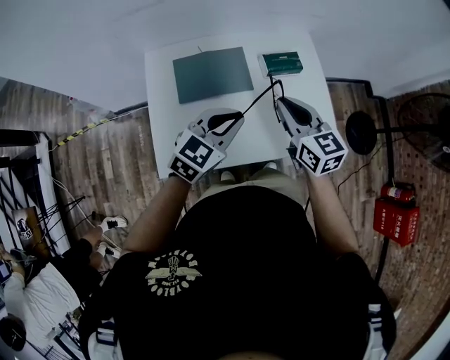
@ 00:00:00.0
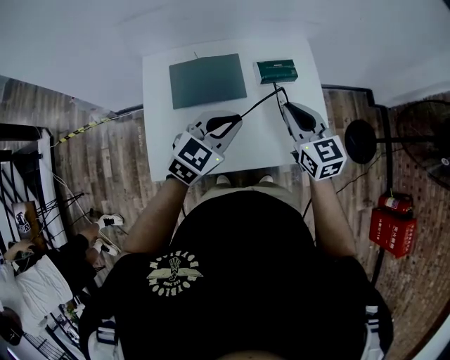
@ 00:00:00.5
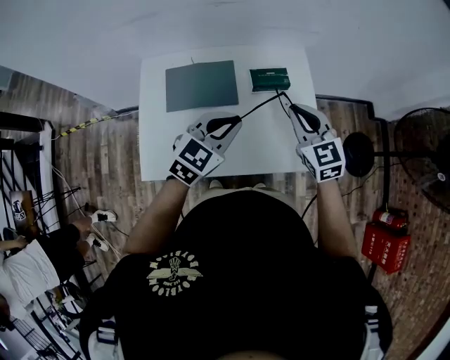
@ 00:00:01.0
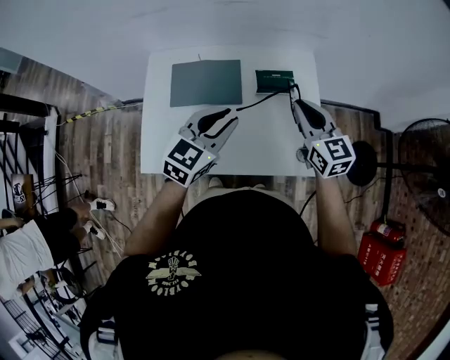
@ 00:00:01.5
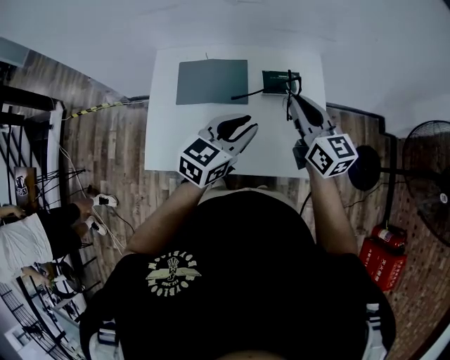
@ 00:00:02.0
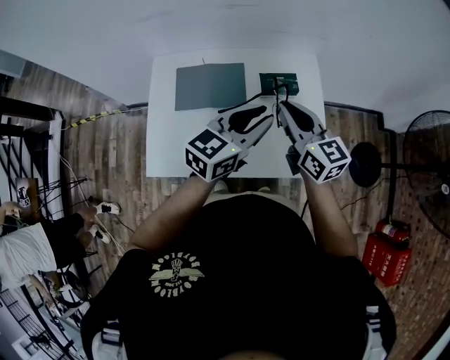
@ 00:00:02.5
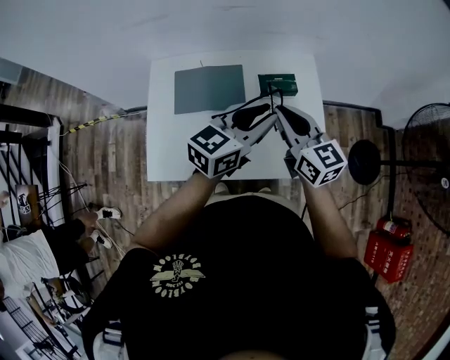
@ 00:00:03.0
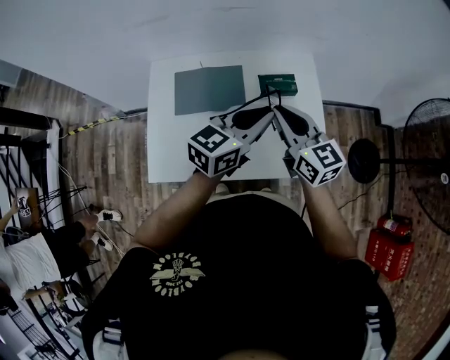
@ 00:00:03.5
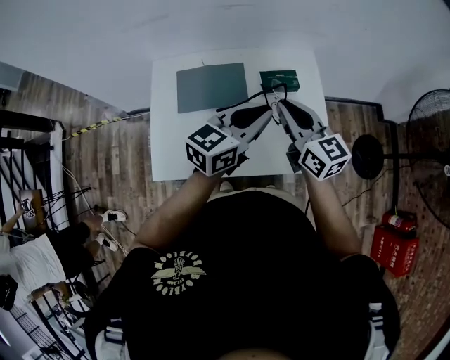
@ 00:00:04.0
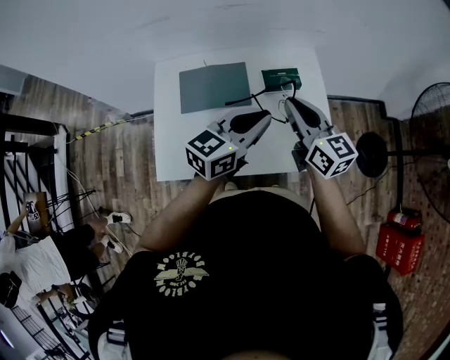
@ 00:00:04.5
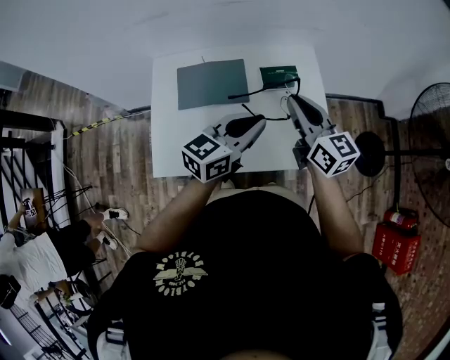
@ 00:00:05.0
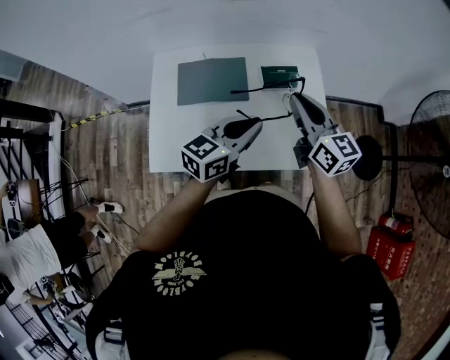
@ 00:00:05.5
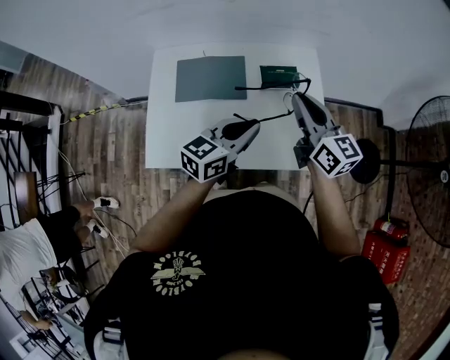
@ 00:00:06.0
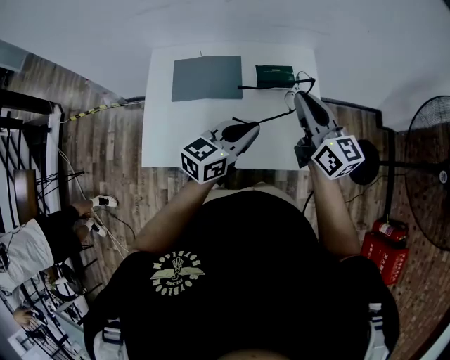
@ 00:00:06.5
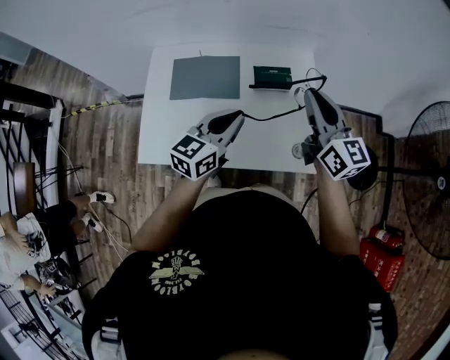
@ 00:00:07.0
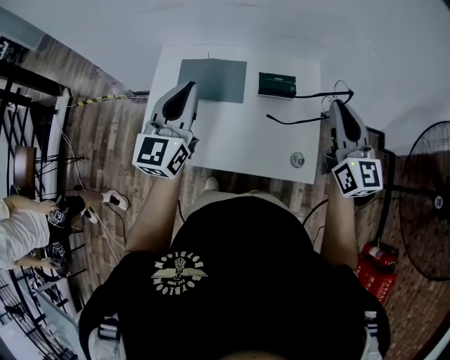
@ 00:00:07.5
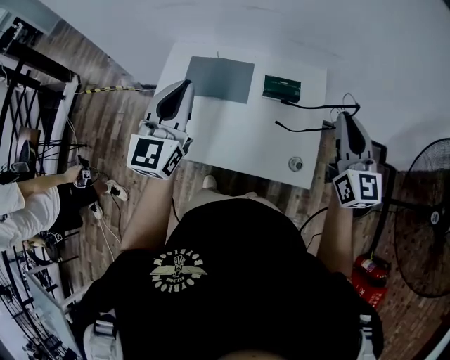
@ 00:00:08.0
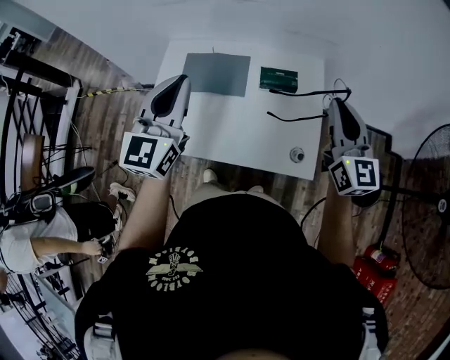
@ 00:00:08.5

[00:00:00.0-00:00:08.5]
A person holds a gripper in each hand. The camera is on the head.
00:00:00.0 to 00:00:02.0: The right gripper moves to the right and forward, roughly 10 cm, while the left gripper shifts some 10 cm to the right, and swivels about 20 degrees.
00:00:02.0 to 00:00:04.0: The right gripper shifts by approximately 5 cm, while the left gripper moves upward, some 5 cm.
00:00:04.0 to 00:00:06.5: The right gripper is displaced to the right by approximately 5 cm. Meanwhile the left gripper shifts some 5 cm downward.
00:00:06.5 to 00:00:08.5: The left gripper shifts about 20 cm upward and to the left, and swivels roughly 50 degrees, while the right gripper goes roughly 10 cm to the right and upward.

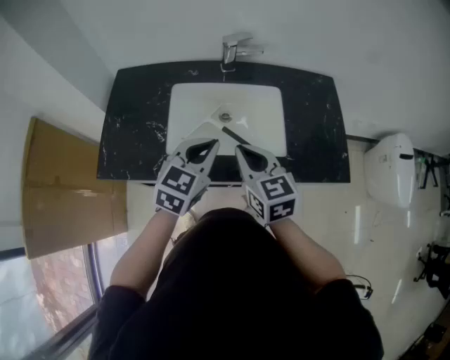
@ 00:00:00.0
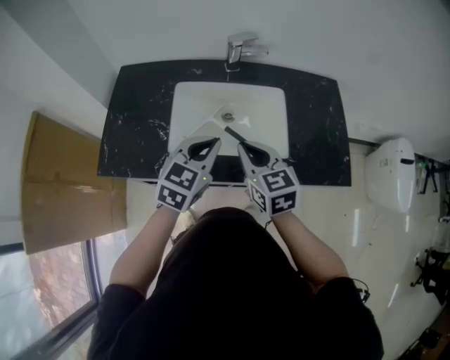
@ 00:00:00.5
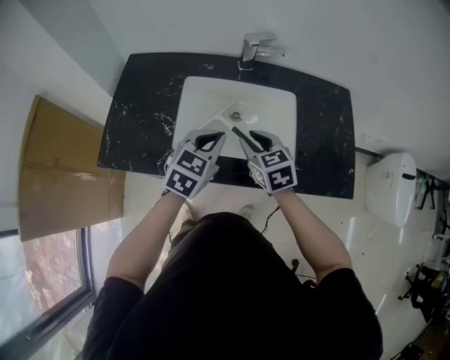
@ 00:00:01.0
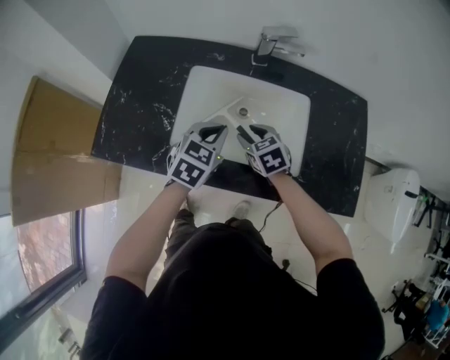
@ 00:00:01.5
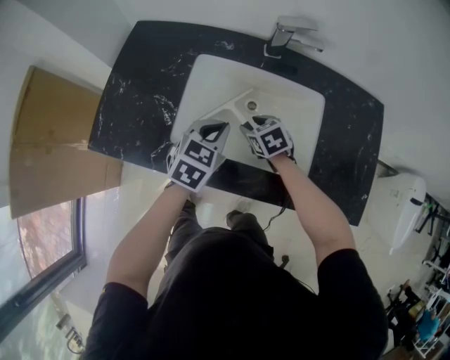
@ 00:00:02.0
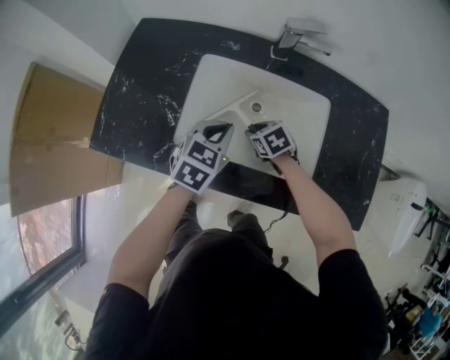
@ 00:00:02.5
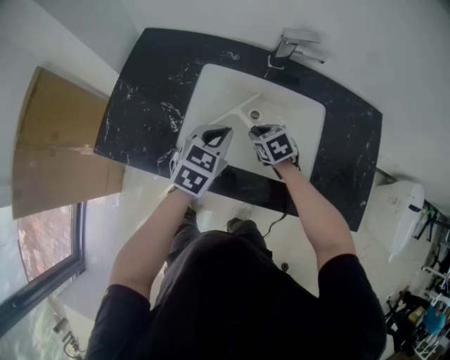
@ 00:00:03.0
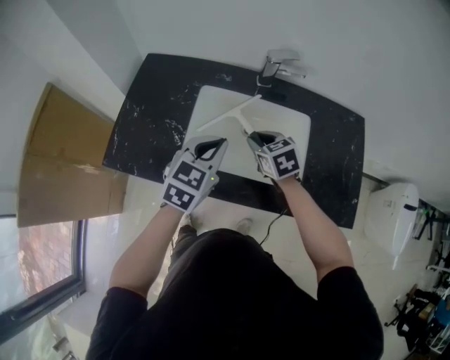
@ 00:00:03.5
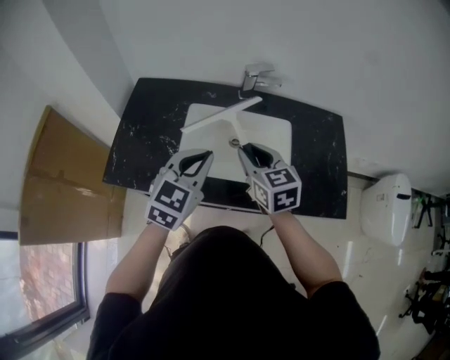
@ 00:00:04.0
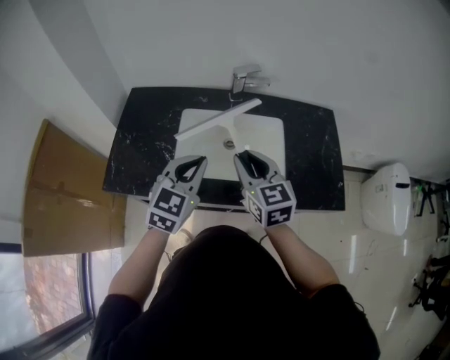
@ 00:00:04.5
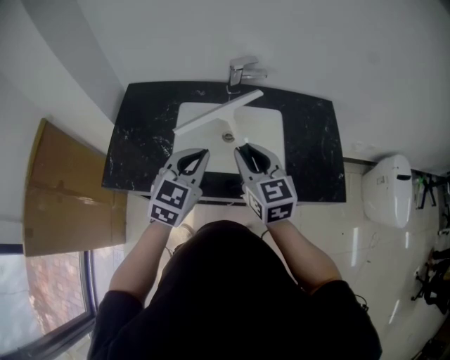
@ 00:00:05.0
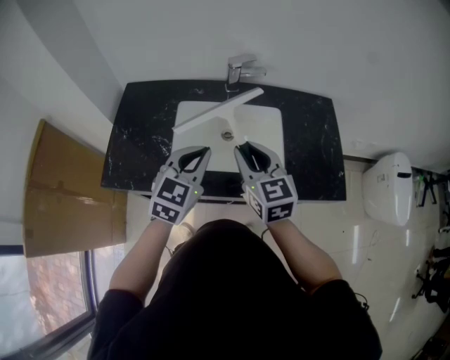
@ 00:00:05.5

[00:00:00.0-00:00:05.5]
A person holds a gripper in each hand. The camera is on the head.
00:00:00.0 to 00:00:02.0: The left gripper is displaced downward and forward by some 15 cm, and swivels approximately 20 degrees; the right gripper shifts about 30 cm downward and forward, points its fingers roughly 30 degrees further downward, and opens.
00:00:02.0 to 00:00:03.5: The two grippers go some 10 cm upward. The right gripper closes up.
00:00:03.5 to 00:00:05.5: The left gripper moves backward, approximately 5 cm; the right gripper shifts roughly 20 cm upward and backward, and tips its fingers upward by approximately 30 degrees.

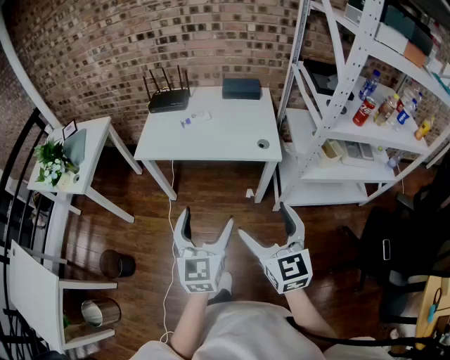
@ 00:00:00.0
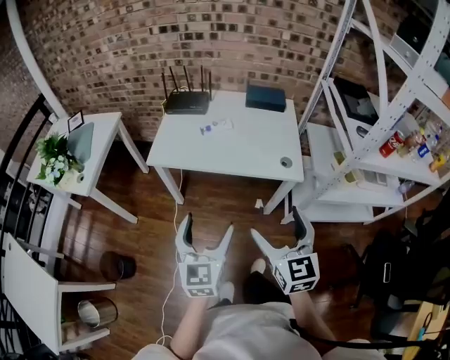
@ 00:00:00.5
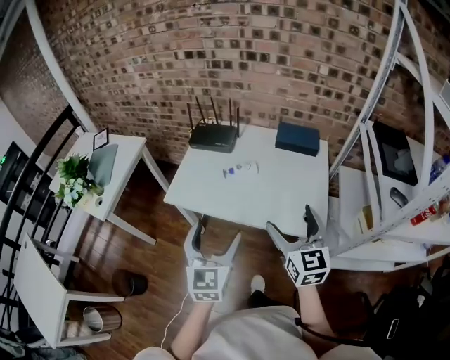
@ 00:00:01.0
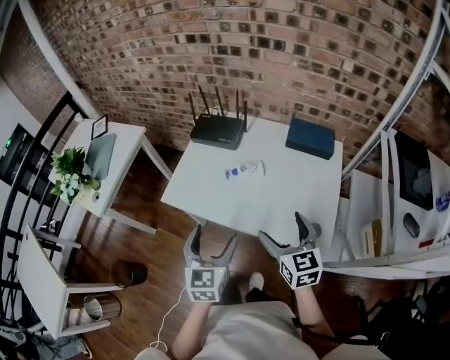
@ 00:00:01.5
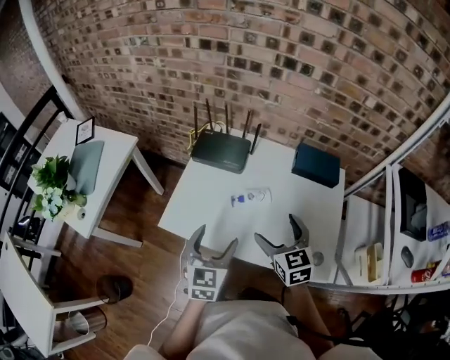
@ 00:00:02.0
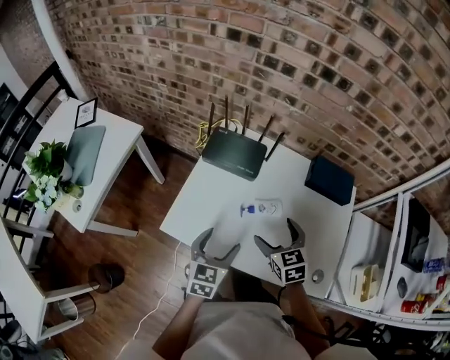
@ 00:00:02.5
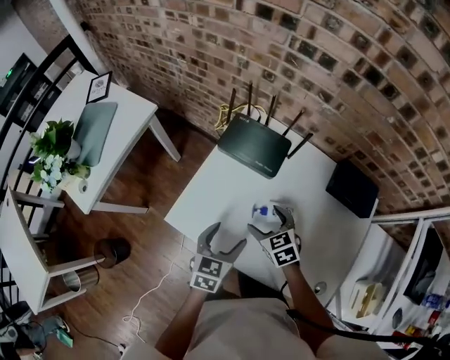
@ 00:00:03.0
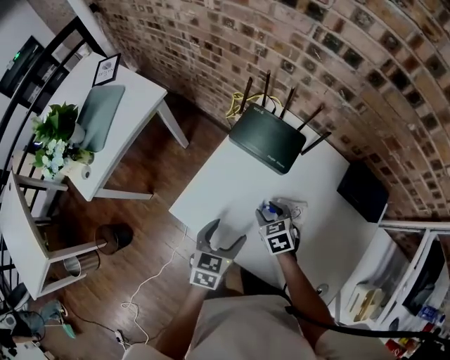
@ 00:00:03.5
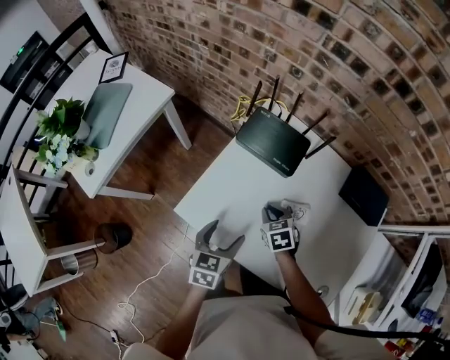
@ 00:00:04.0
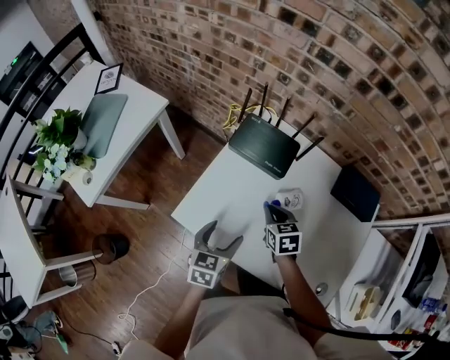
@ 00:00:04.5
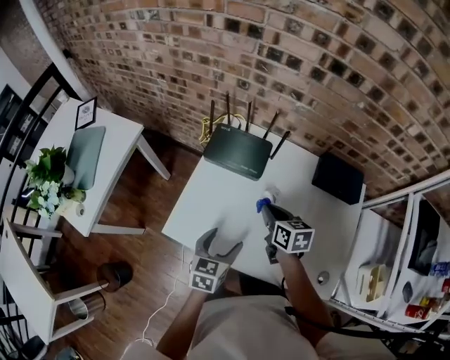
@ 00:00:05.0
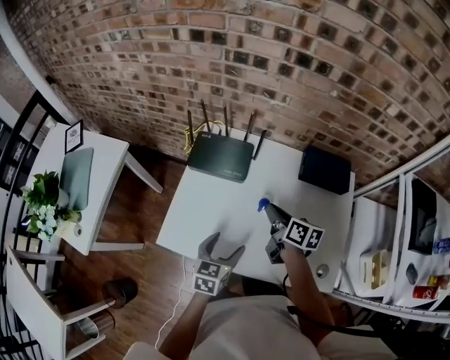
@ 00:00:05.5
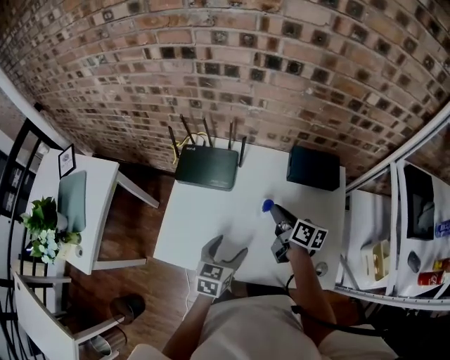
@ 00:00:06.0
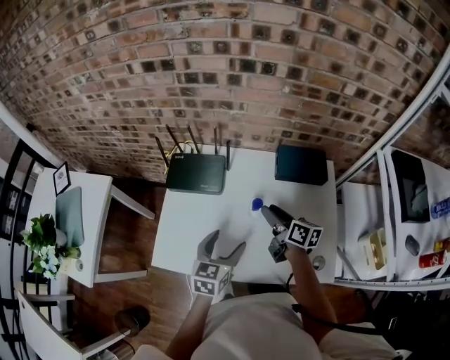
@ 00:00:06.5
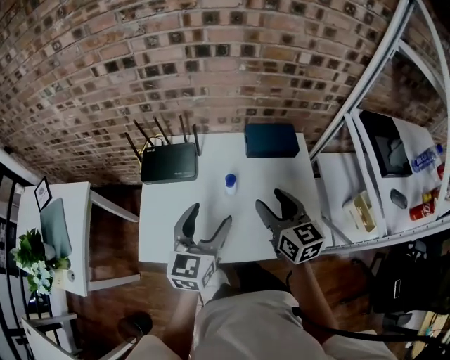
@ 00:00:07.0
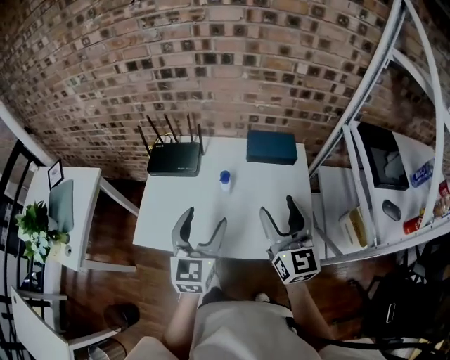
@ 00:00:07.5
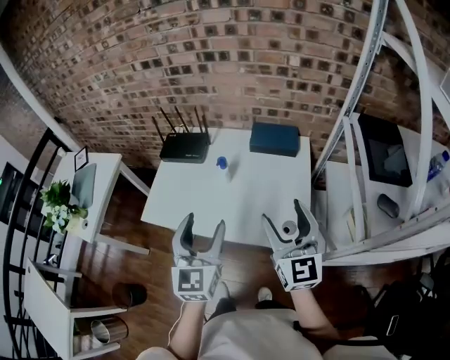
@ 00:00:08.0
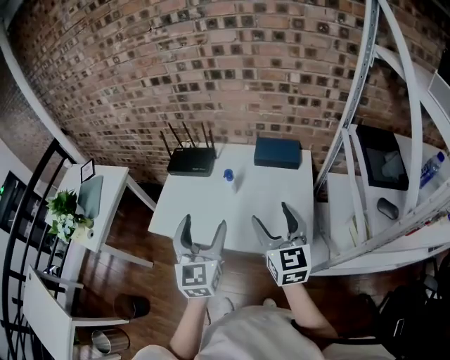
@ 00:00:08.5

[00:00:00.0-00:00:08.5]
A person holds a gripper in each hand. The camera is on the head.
00:00:00.0 to 00:00:02.0: The pair of grippers is taken forward, roughly 50 cm. The right gripper changes its angle by some 20 degrees.
00:00:02.0 to 00:00:04.0: The left gripper is displaced downward and forward by approximately 15 cm, and turns by about 30 degrees. The right gripper is displaced downward, forward and to the left by approximately 30 cm, swivels some 30 degrees, and closes up.
00:00:04.0 to 00:00:06.5: The two grippers go some 20 cm to the right and upward. The right gripper tips its fingers upward by some 40 degrees. The left gripper changes its angle by roughly 30 degrees.
00:00:06.5 to 00:00:08.5: The left gripper shifts approximately 25 cm upward and backward, and turns by some 40 degrees; the right gripper heads backward, upward and to the right, covering roughly 35 cm, and rotates around the line of its fingers by about 50 degrees, counterclockwise from behind.

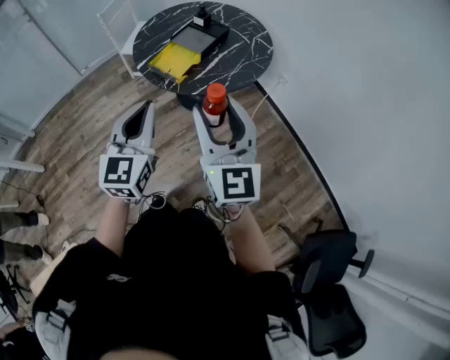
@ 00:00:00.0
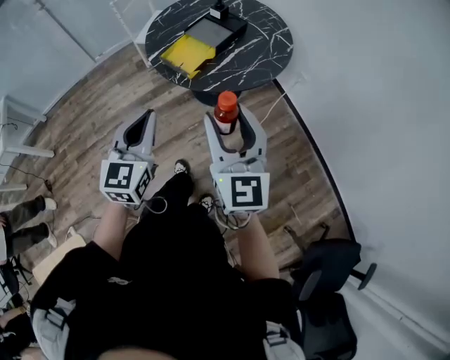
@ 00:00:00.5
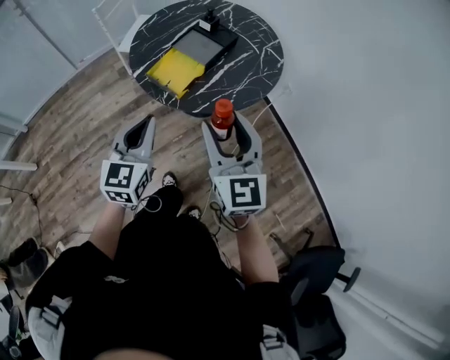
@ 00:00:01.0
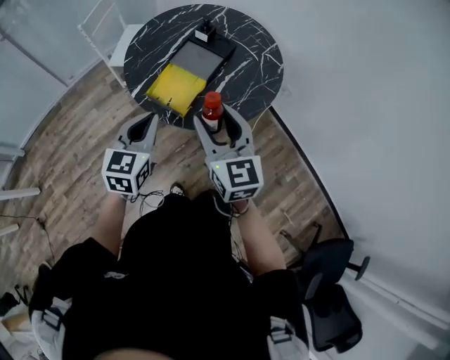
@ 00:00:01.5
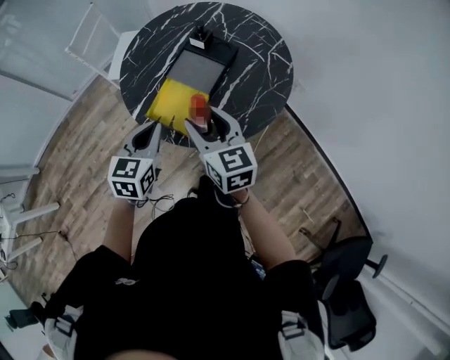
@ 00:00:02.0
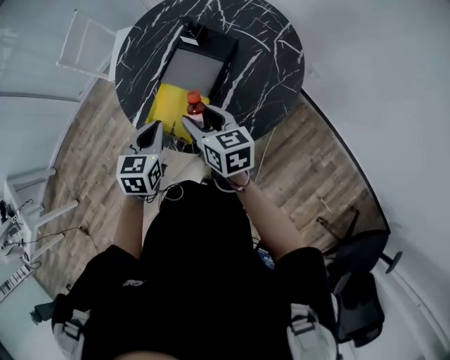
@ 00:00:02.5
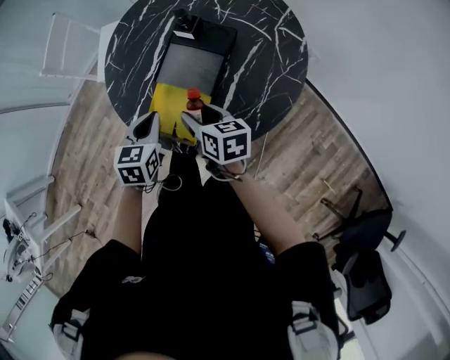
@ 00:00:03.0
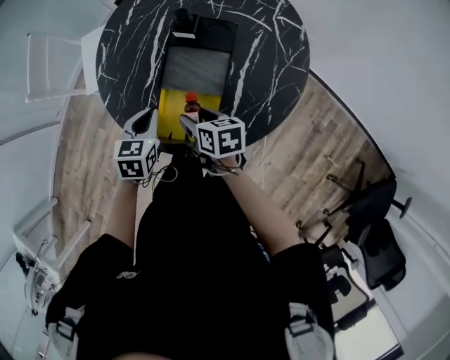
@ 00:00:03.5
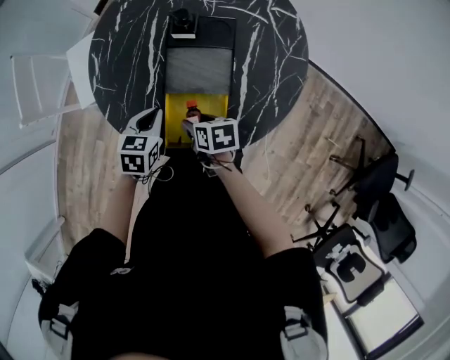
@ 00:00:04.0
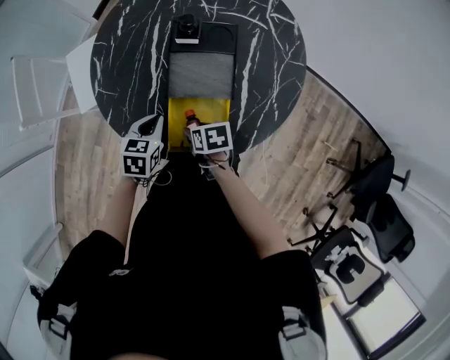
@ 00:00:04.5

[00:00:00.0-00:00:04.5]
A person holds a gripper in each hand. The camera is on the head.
00:00:00.0 to 00:00:02.0: Both grippers move forward and downward, roughly 40 cm. The left gripper turns by some 30 degrees. Meanwhile the right gripper changes its angle by about 30 degrees.
00:00:02.0 to 00:00:04.5: The left gripper is displaced forward and downward by roughly 30 cm, and rotates some 40 degrees. Meanwhile the right gripper heads downward, covering about 30 cm, and tilts its fingers approximately 40 degrees downward.
